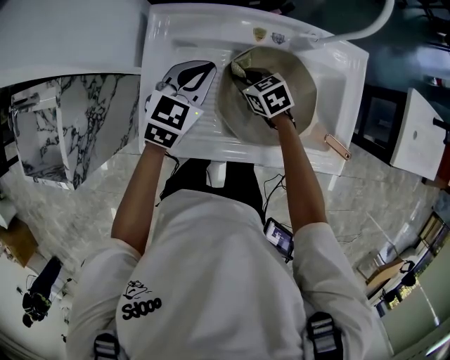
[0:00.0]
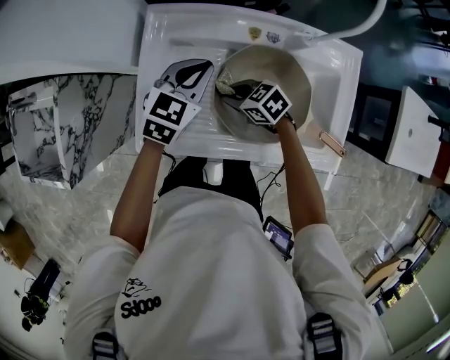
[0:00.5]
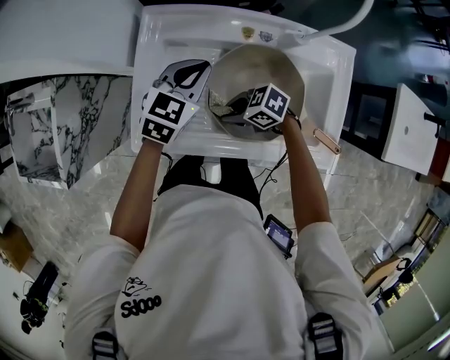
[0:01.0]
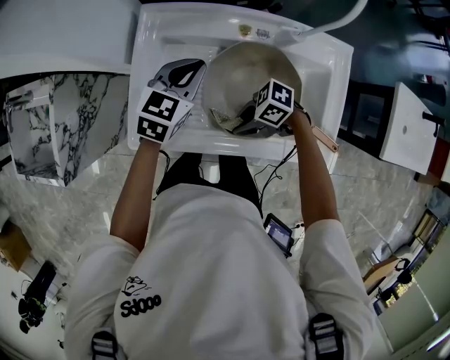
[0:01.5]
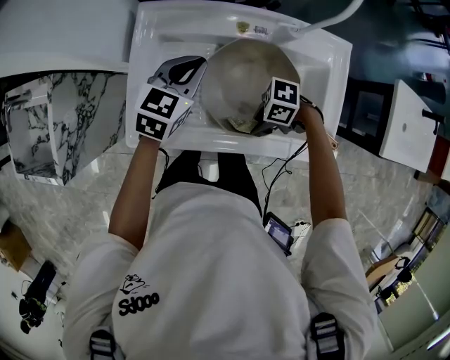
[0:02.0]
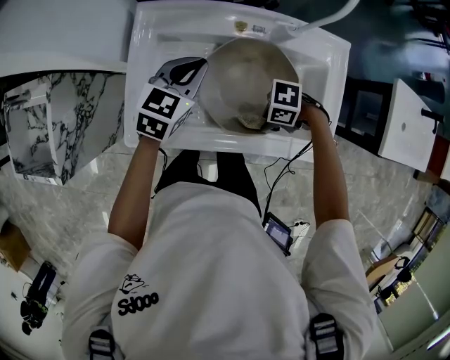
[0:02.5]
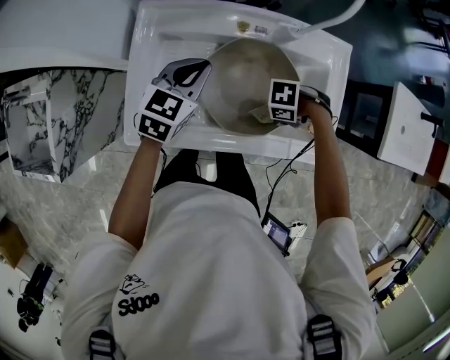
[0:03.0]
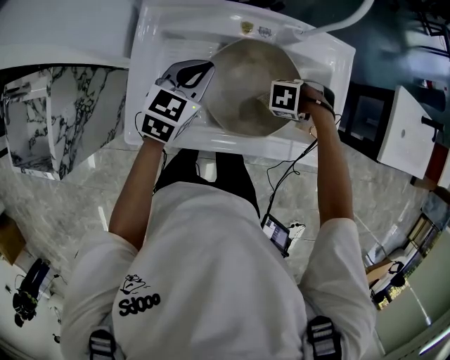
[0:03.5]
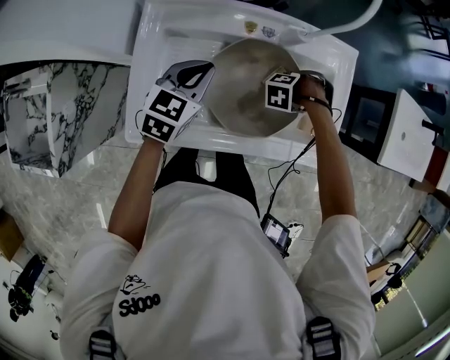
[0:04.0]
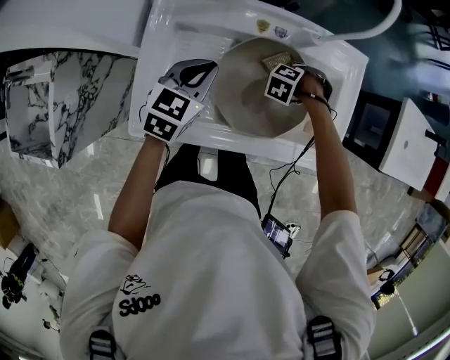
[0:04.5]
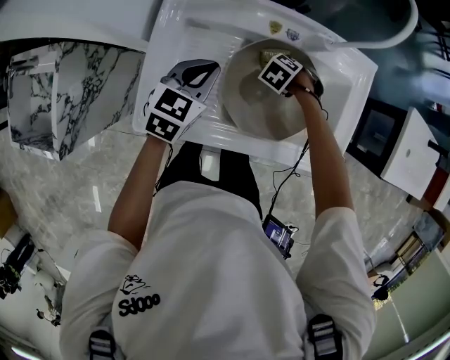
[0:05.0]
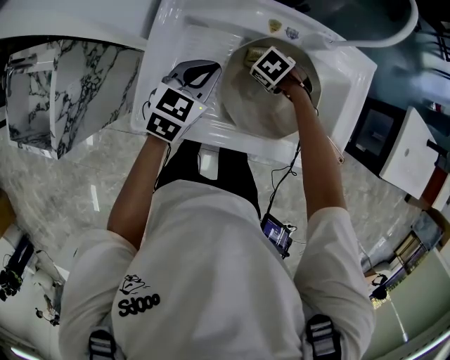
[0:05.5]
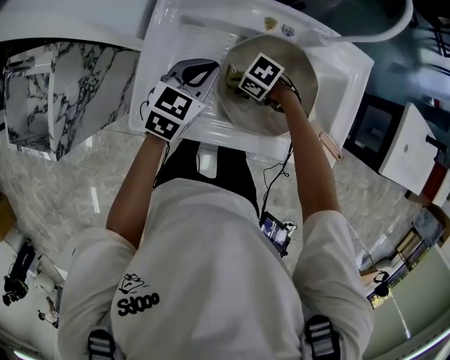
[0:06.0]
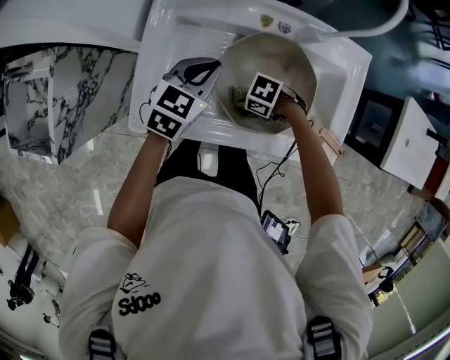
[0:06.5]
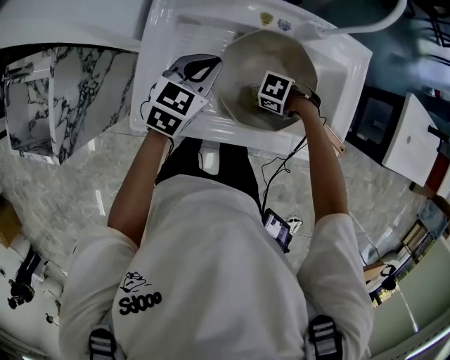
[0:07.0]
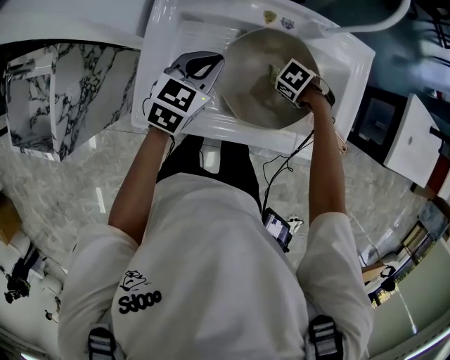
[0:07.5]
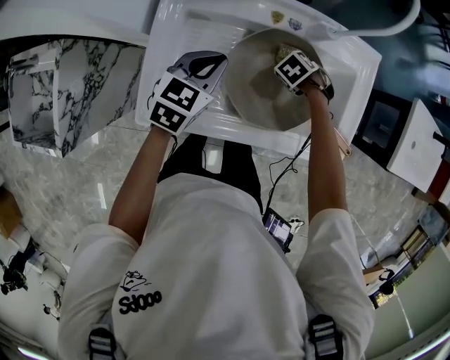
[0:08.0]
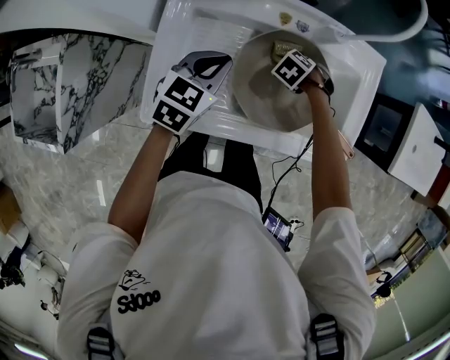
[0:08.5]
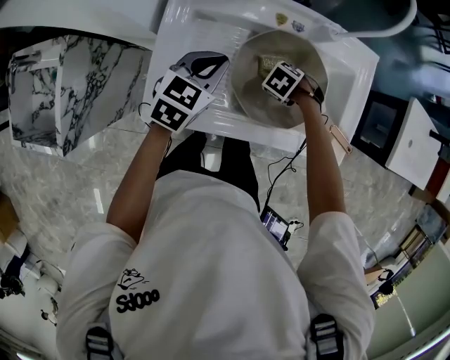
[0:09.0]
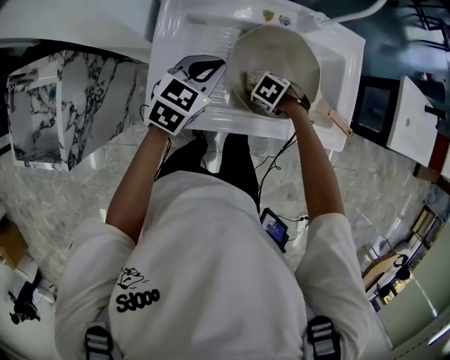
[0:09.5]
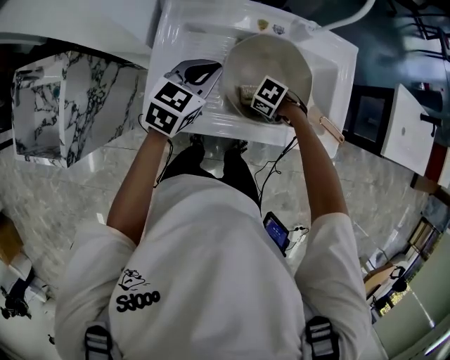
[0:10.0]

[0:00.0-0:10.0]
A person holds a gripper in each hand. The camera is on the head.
0:00.0 to 0:02.0: The right gripper shifts by about 20 cm, and swivels some 60 degrees.
0:02.0 to 0:04.0: The right gripper ends up about 20 cm from where it was, and tilts its fingers approximately 40 degrees downward.
0:04.0 to 0:06.0: The right gripper ends up roughly 20 cm from where it was, and swivels some 50 degrees.
0:06.0 to 0:08.0: The right gripper ends up approximately 15 cm from where it was, and tips its fingers downward by approximately 30 degrees.
0:08.0 to 0:10.0: The right gripper changes place by some 15 cm, and changes its angle by approximately 20 degrees.

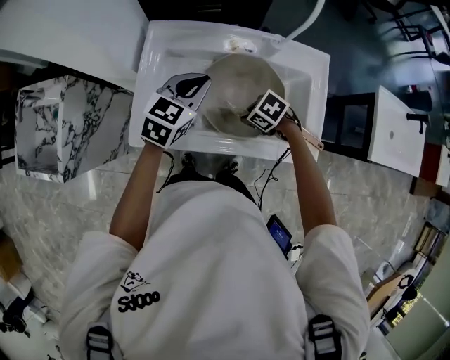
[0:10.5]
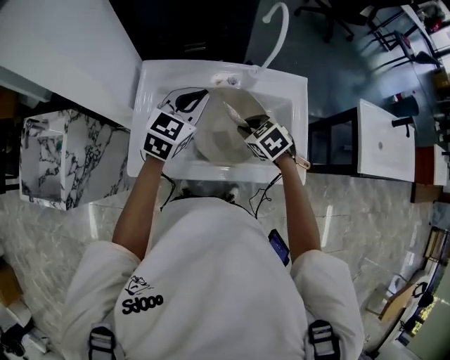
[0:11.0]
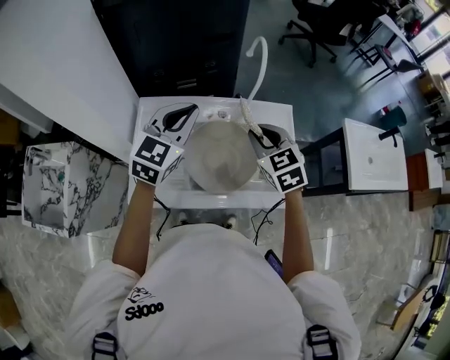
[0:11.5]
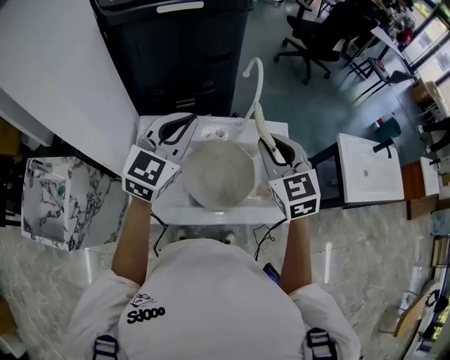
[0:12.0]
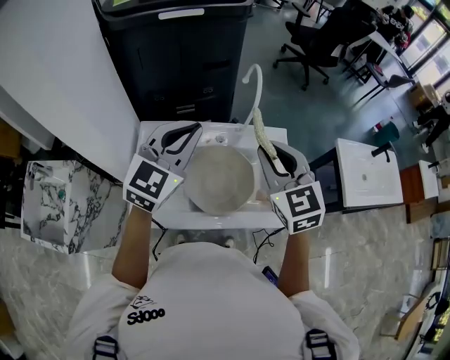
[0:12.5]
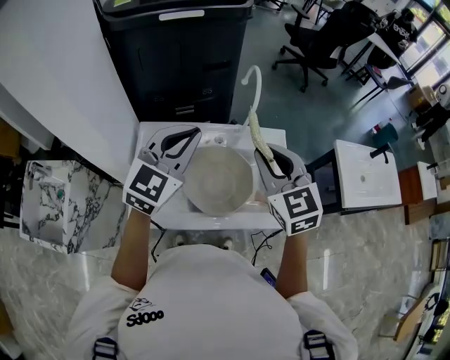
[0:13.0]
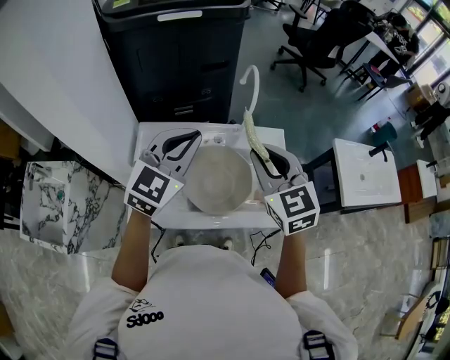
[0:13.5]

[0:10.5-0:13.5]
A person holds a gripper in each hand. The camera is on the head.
0:10.5 to 0:12.0: The left gripper is displaced upward by some 20 cm, and swivels roughly 30 degrees, while the right gripper moves upward, roughly 35 cm, and tips its fingers upward by some 50 degrees.
0:12.0 to 0:13.5: The grippers stay close to where they were, moving slightly.

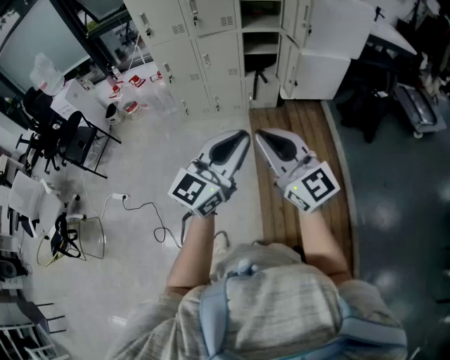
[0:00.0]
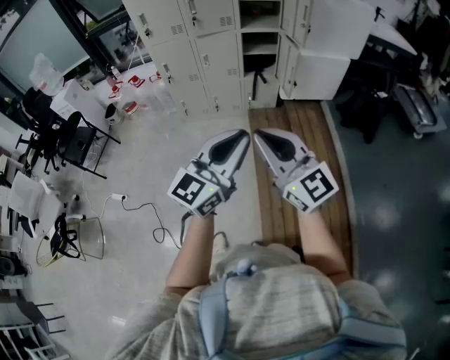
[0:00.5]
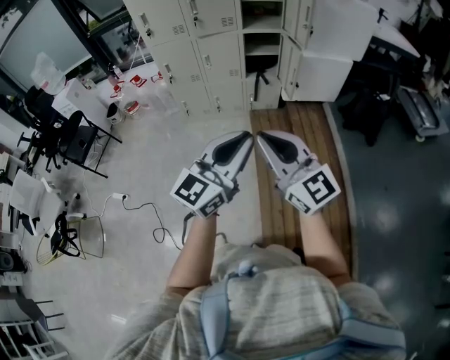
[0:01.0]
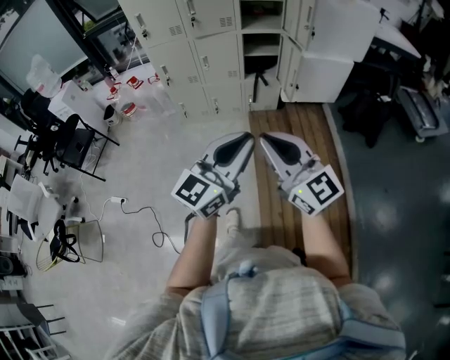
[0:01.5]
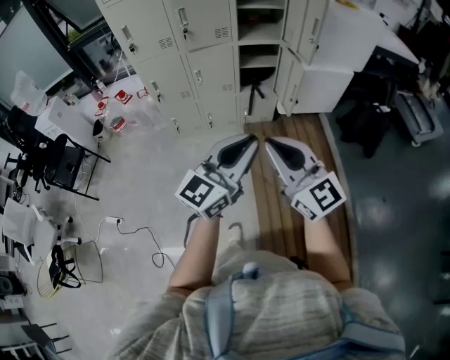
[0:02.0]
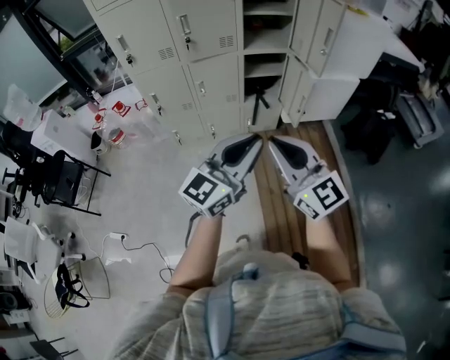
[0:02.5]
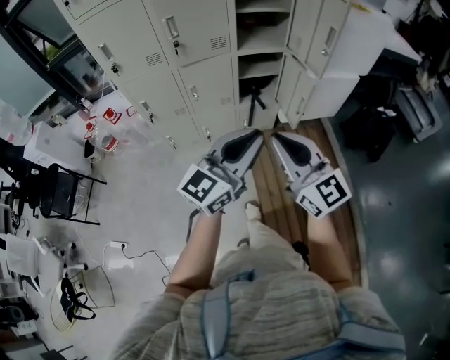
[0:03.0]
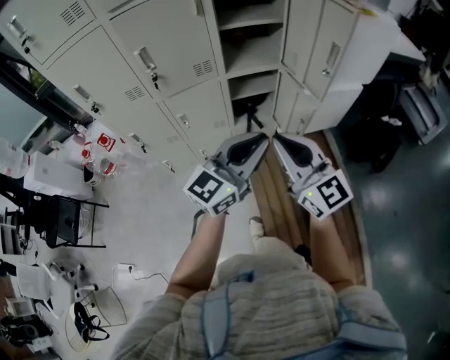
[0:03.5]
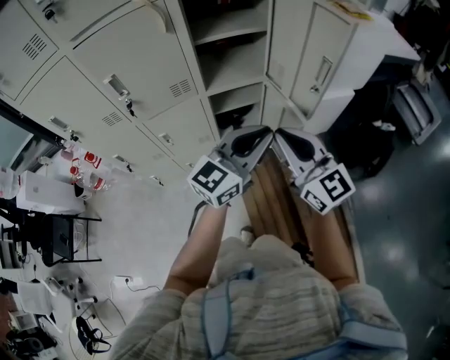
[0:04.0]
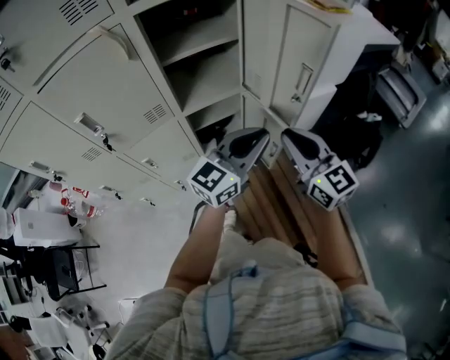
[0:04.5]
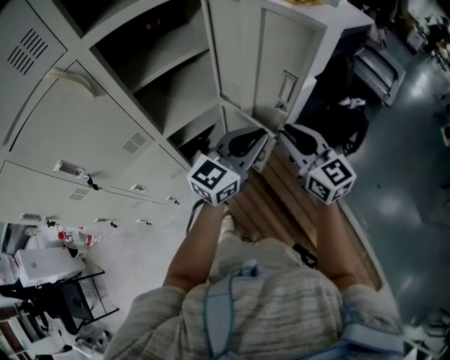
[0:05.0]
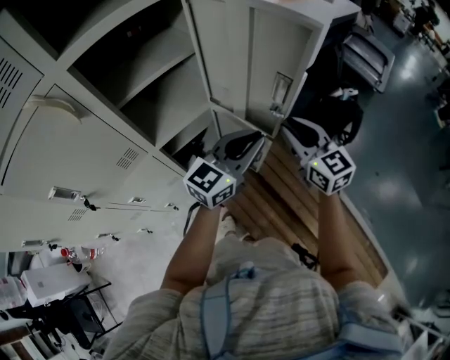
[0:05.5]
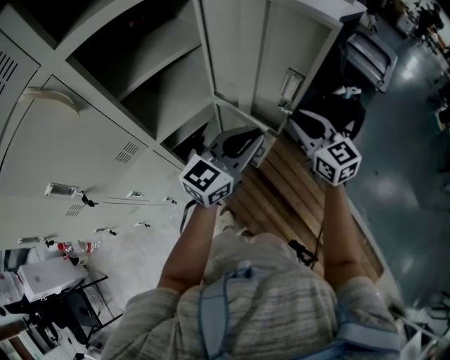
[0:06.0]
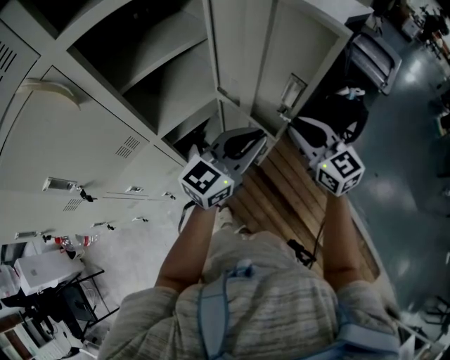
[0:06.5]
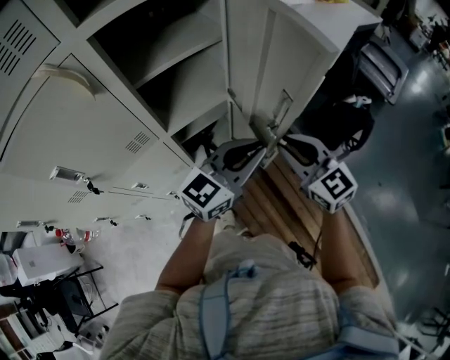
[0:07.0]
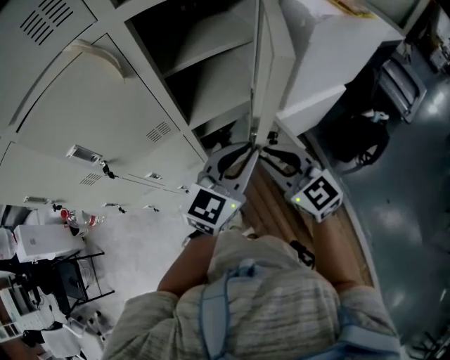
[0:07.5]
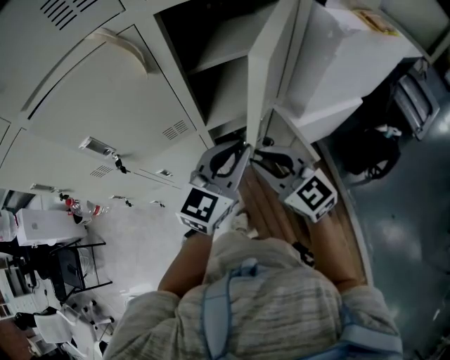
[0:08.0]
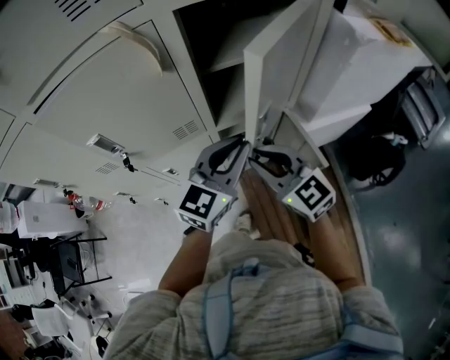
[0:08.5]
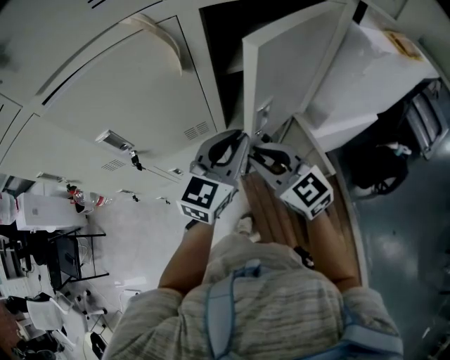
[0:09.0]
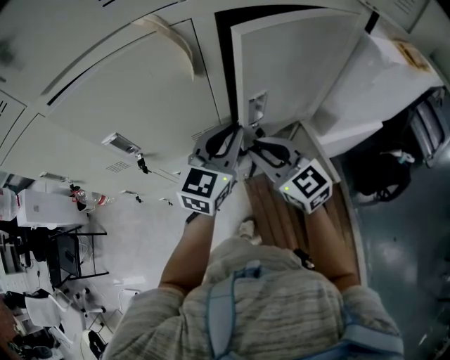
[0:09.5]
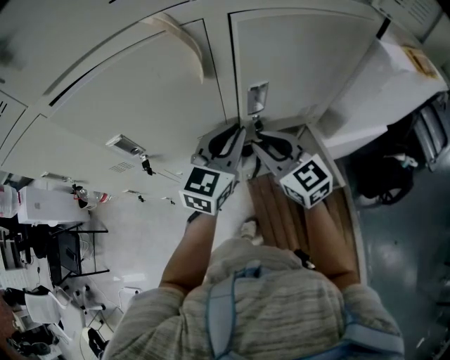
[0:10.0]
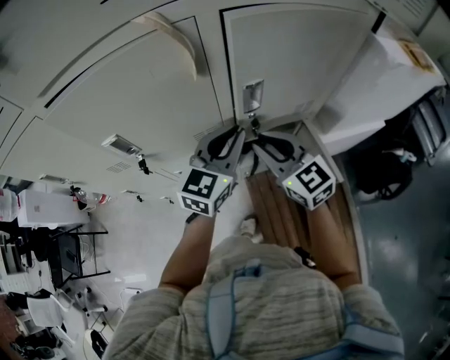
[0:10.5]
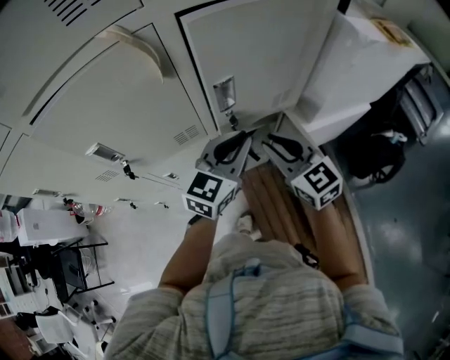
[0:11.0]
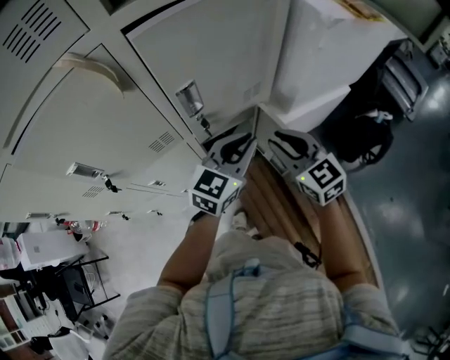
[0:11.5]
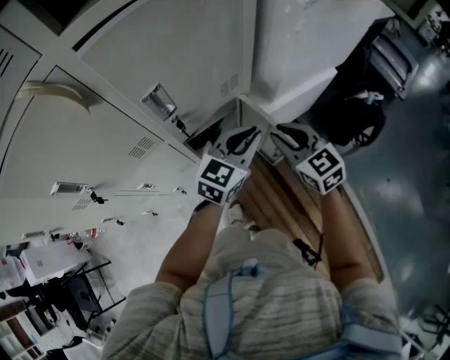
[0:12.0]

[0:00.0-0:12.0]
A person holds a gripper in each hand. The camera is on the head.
0:00.0 to 0:02.0: The two grippers go some 20 cm forward.
0:02.0 to 0:04.0: The two grippers travel together, forward, approximately 40 cm.
0:04.0 to 0:06.0: The right gripper is displaced forward and to the right by approximately 25 cm, and swivels approximately 30 degrees. Meanwhile the left gripper moves forward, roughly 15 cm, and rotates some 20 degrees.
0:06.0 to 0:08.0: The left gripper ends up roughly 15 cm from where it was, and rotates about 30 degrees. The right gripper moves roughly 25 cm, and turns by some 40 degrees.
0:08.0 to 0:10.0: Both grippers move forward and to the left, some 15 cm.
0:10.0 to 0:12.0: The right gripper ends up some 25 cm from where it was, and swivels roughly 20 degrees, while the left gripper changes place by some 25 cm, and turns by some 30 degrees.

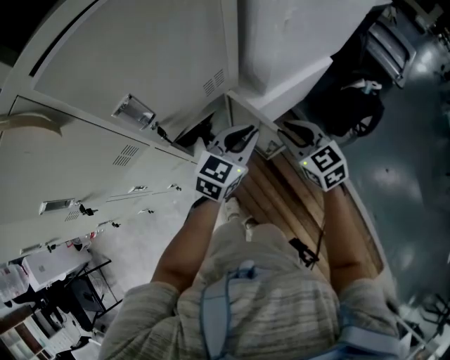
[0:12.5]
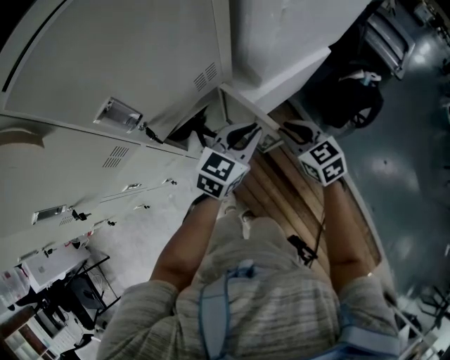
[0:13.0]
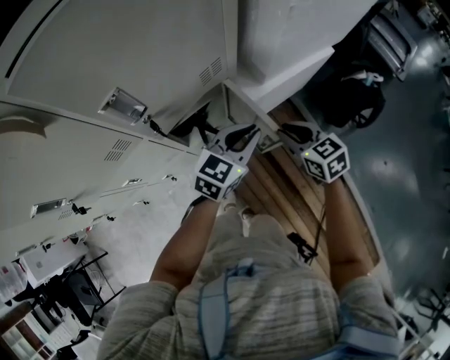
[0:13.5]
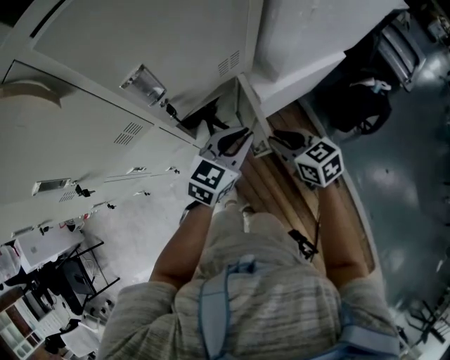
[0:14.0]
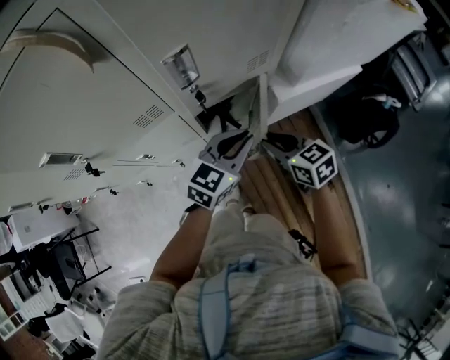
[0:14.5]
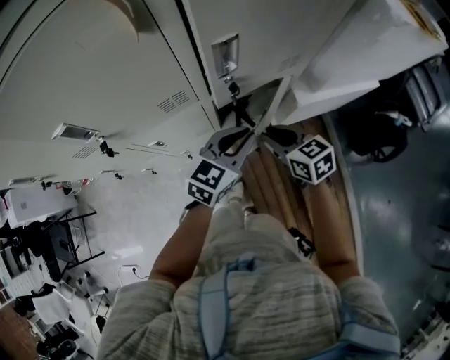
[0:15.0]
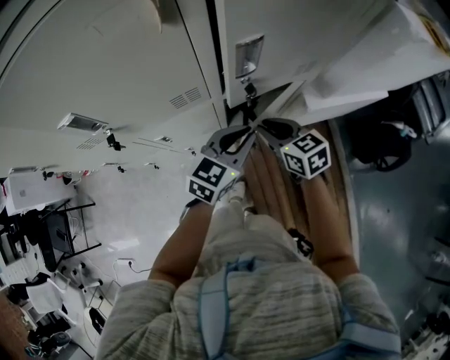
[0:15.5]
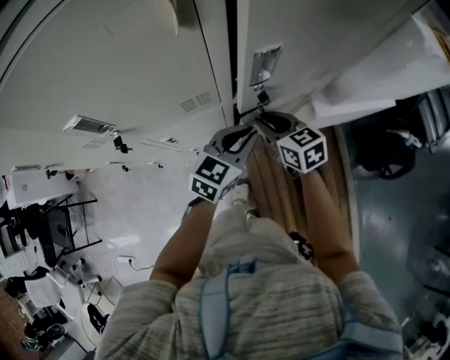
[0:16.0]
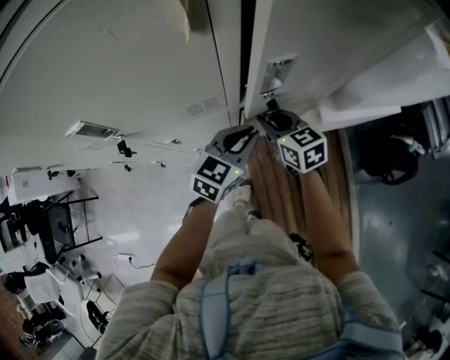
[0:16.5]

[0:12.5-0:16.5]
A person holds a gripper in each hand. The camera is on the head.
0:12.5 to 0:14.5: The left gripper heads to the left and backward, covering roughly 10 cm, while the right gripper travels to the left, backward and downward by some 15 cm, and turns by about 20 degrees.
0:14.5 to 0:16.5: Both grippers travel together to the left and forward, approximately 15 cm.
